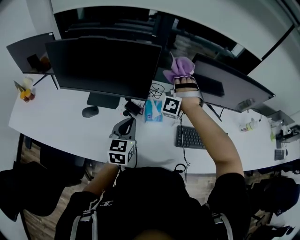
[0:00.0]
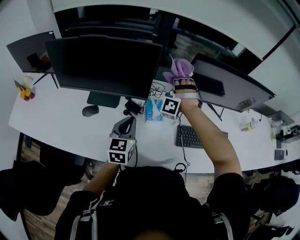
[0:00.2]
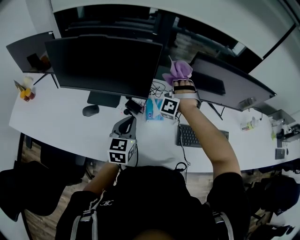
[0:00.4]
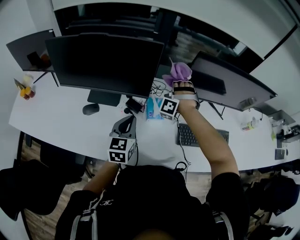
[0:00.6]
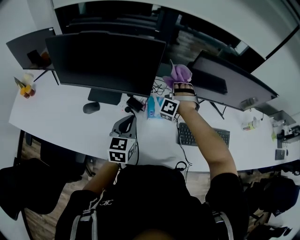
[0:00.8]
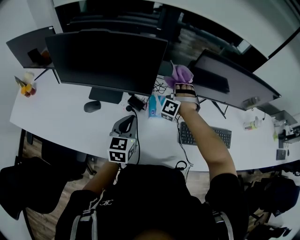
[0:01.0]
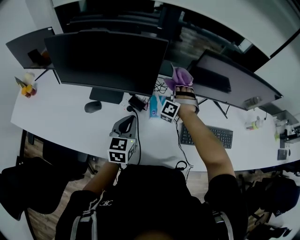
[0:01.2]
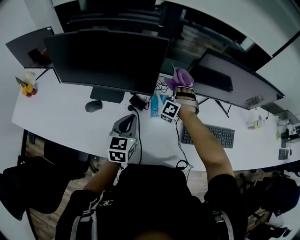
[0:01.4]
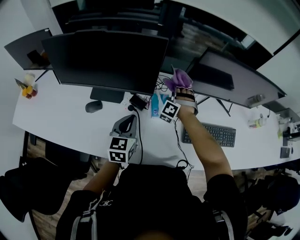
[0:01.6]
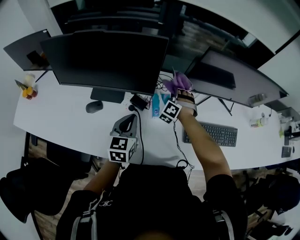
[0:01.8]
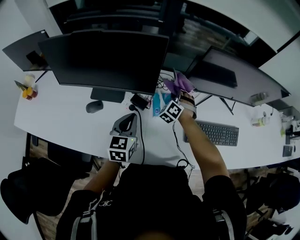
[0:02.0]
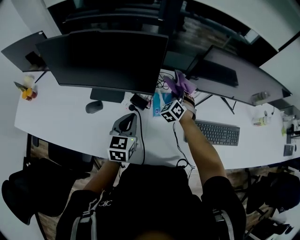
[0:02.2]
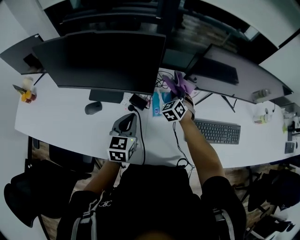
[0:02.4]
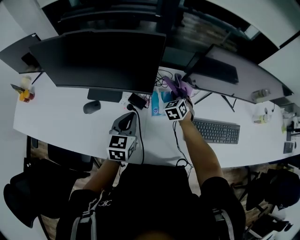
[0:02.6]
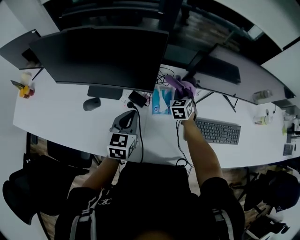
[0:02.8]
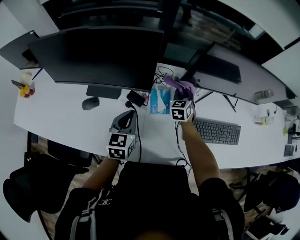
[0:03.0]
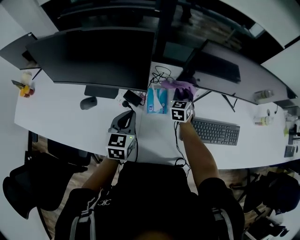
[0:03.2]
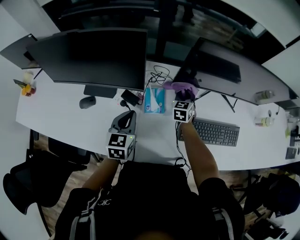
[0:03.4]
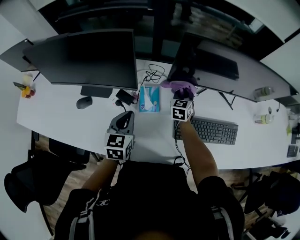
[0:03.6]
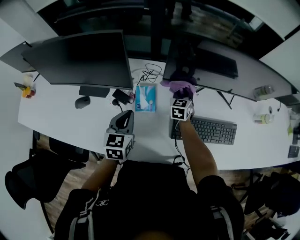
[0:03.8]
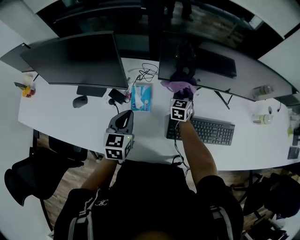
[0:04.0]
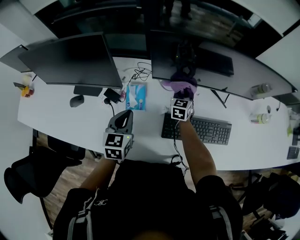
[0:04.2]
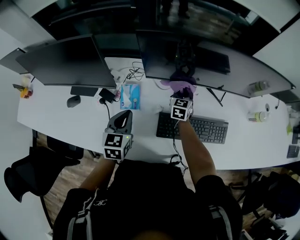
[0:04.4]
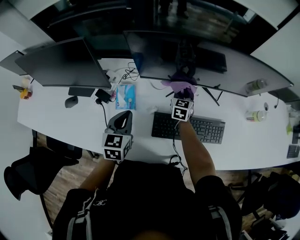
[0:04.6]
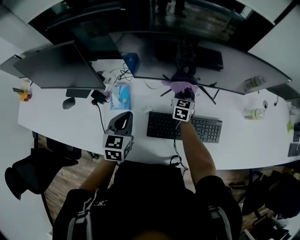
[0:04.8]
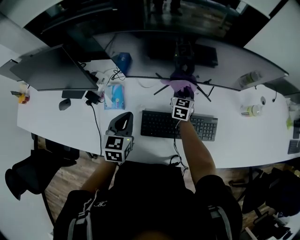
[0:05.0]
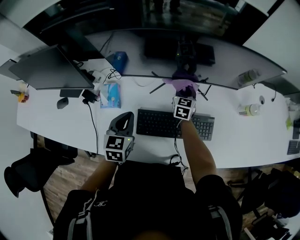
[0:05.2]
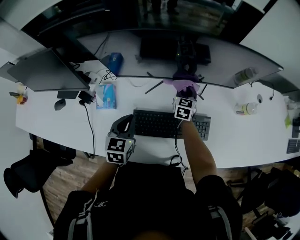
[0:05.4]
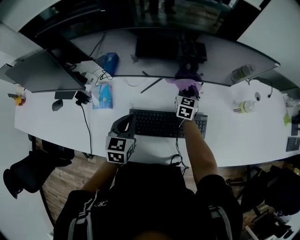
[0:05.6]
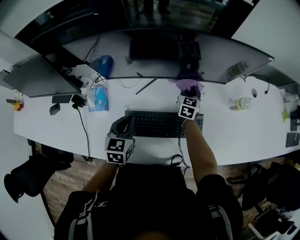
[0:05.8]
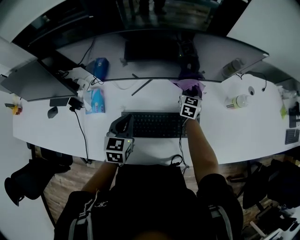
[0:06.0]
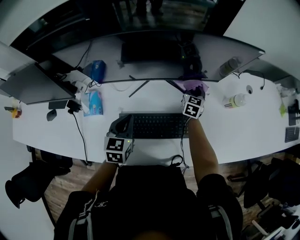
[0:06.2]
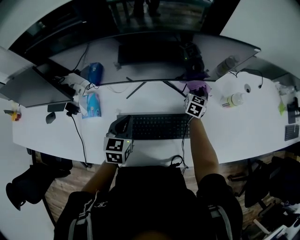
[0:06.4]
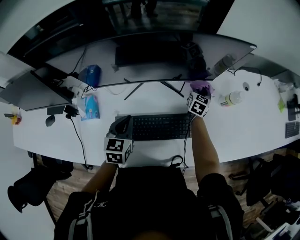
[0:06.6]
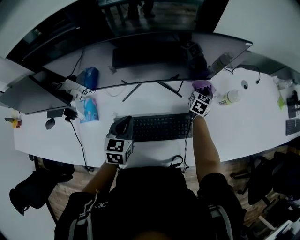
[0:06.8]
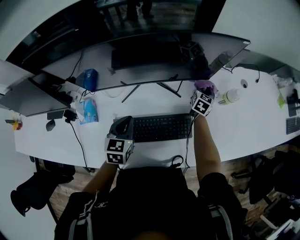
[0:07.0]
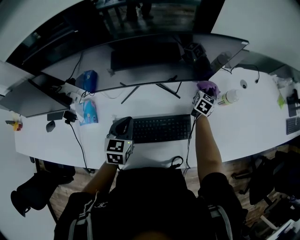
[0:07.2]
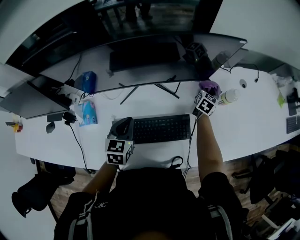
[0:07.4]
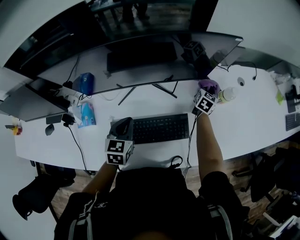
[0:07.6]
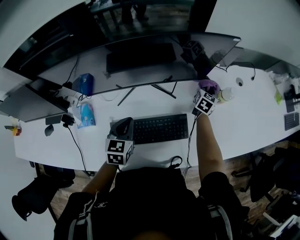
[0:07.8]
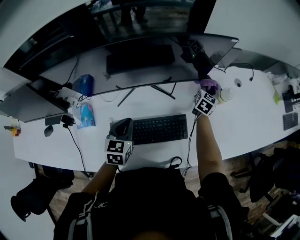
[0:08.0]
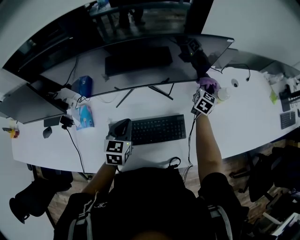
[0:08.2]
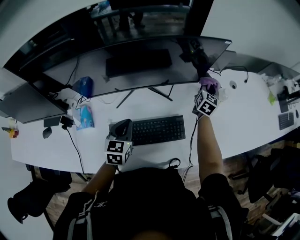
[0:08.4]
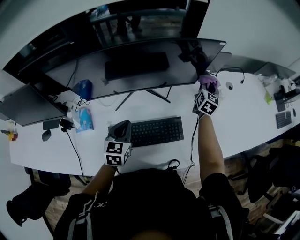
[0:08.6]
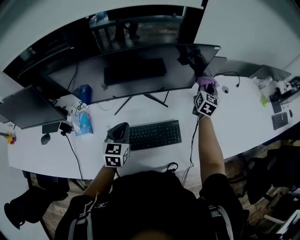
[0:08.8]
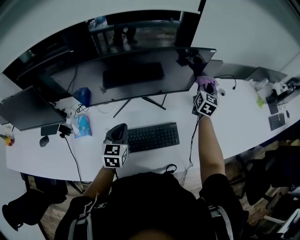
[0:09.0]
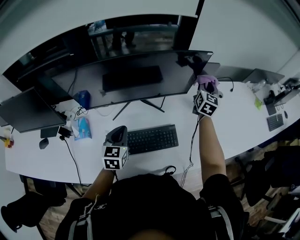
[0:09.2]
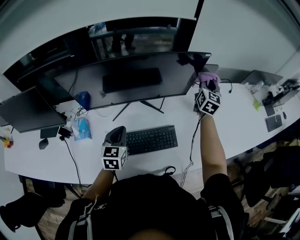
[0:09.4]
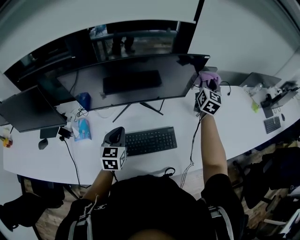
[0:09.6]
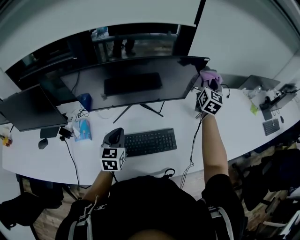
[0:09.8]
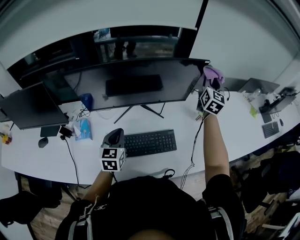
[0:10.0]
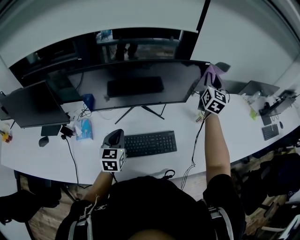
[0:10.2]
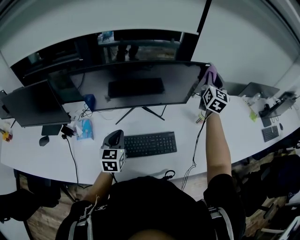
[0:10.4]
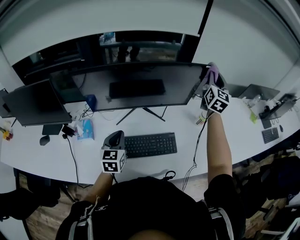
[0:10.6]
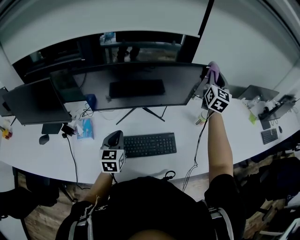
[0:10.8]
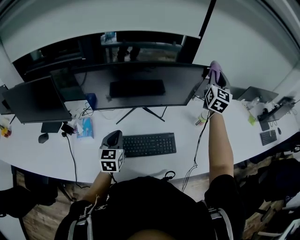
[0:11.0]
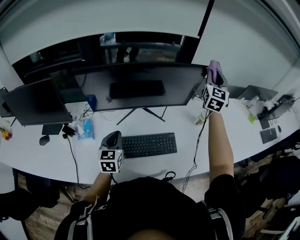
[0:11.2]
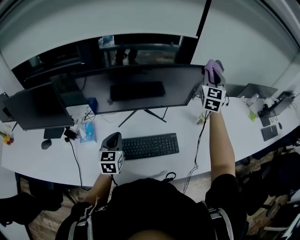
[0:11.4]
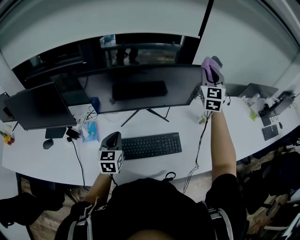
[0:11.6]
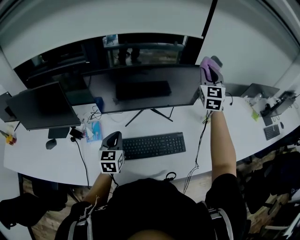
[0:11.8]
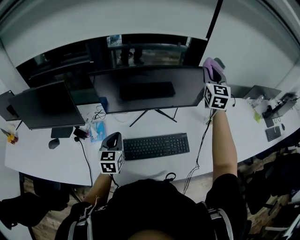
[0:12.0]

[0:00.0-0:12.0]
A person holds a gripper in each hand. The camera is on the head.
0:00.0 to 0:01.6: The right gripper heads downward, covering roughly 15 cm, and swivels about 20 degrees.
0:01.6 to 0:03.0: The left gripper moves roughly 5 cm. Meanwhile the right gripper shifts approximately 5 cm downward, and rolls clockwise, seen from behind, by about 70 degrees.
0:03.0 to 0:04.4: Both grippers travel together to the right, roughly 20 cm.
0:04.4 to 0:06.0: The grippers both shift to the right by approximately 25 cm.
0:06.0 to 0:07.6: The right gripper goes some 20 cm to the right, and rotates approximately 30 degrees, while the left gripper is displaced to the right by some 5 cm.
0:07.6 to 0:09.0: The right gripper travels upward by approximately 20 cm, and changes its angle by some 20 degrees.
0:09.0 to 0:10.4: The left gripper ends up approximately 5 cm from where it was, while the right gripper heads upward, covering some 20 cm.
0:10.4 to 0:12.0: Both grippers travel together to the left, roughly 10 cm.

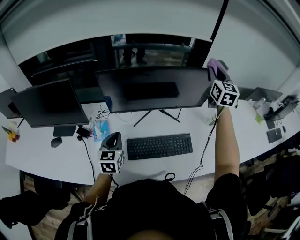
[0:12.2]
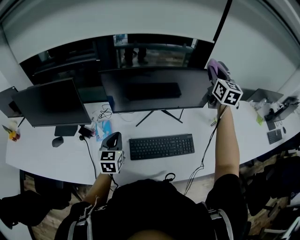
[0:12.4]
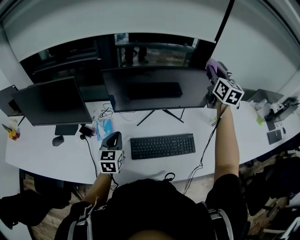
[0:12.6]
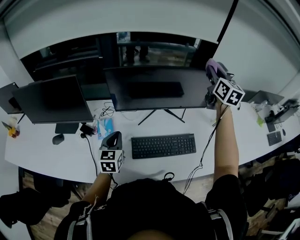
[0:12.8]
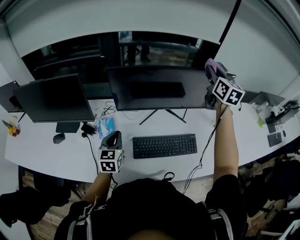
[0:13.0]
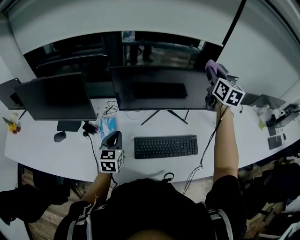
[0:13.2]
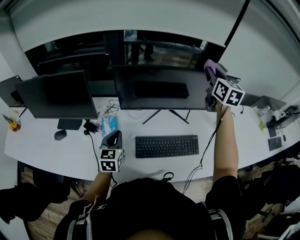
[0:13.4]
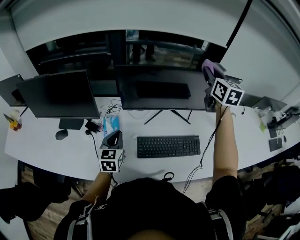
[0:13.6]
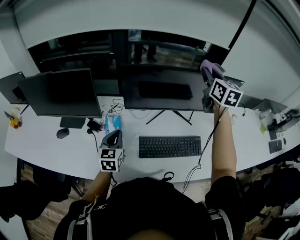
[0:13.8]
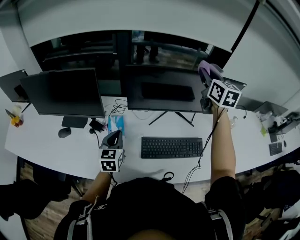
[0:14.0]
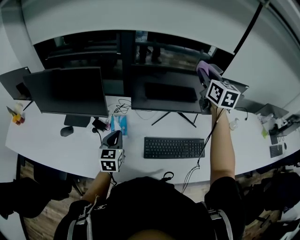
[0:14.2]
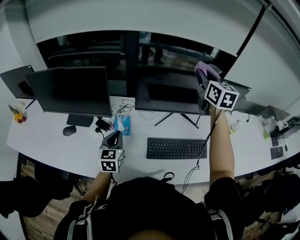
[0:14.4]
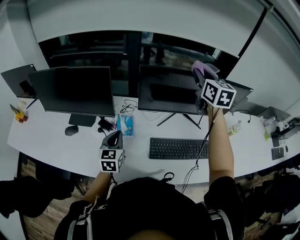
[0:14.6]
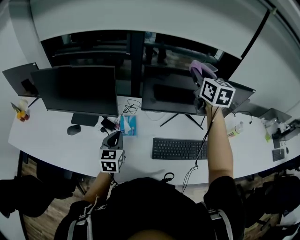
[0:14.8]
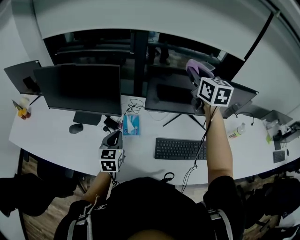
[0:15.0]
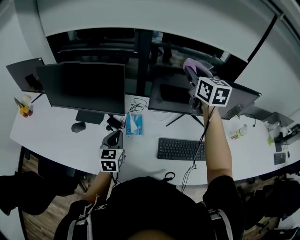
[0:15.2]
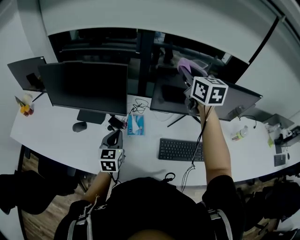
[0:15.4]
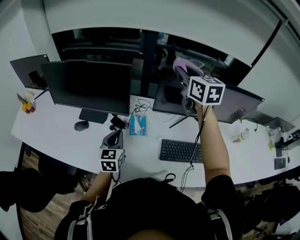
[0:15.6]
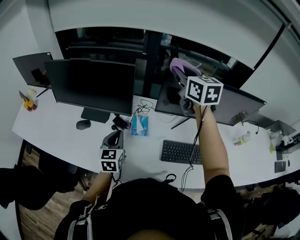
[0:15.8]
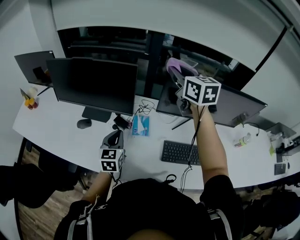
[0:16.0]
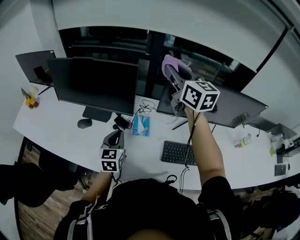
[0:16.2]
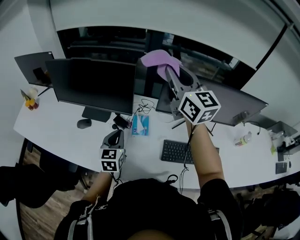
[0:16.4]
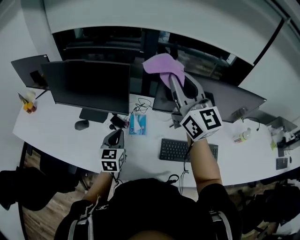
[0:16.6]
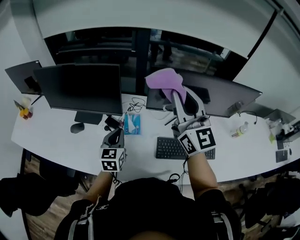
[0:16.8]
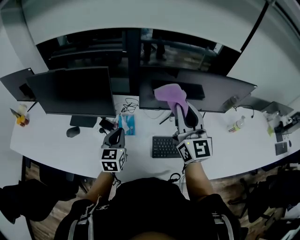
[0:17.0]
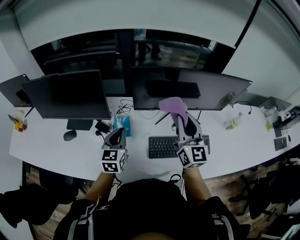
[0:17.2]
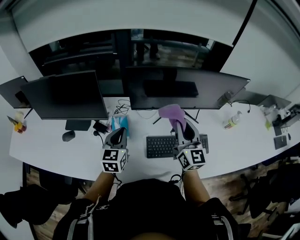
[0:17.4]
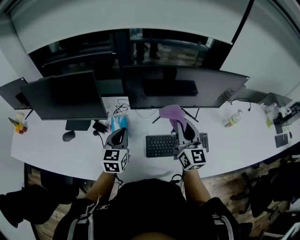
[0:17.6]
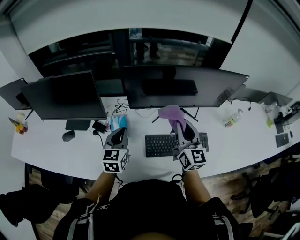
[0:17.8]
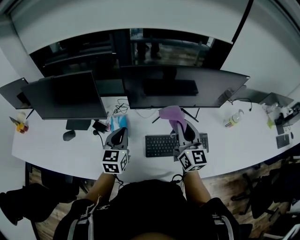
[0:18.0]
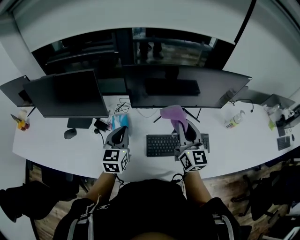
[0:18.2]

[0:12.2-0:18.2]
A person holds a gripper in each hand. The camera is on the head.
0:12.2 to 0:13.8: The right gripper is displaced to the left by approximately 15 cm. Meanwhile the left gripper moves to the left, some 10 cm.
0:13.8 to 0:15.2: The right gripper moves to the left, about 25 cm. The left gripper heads to the left, covering roughly 15 cm.
0:15.2 to 0:16.6: The right gripper goes roughly 15 cm to the left and backward, and turns by roughly 30 degrees.
0:16.6 to 0:18.2: The right gripper travels to the right and downward by approximately 30 cm, and changes its angle by roughly 30 degrees, while the left gripper is displaced to the right by roughly 15 cm.

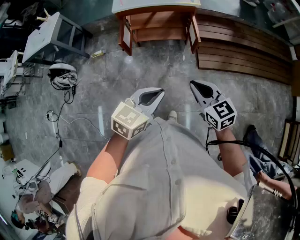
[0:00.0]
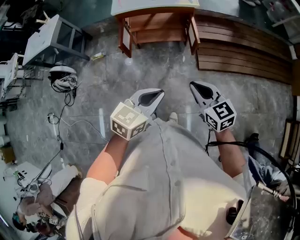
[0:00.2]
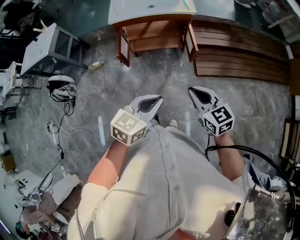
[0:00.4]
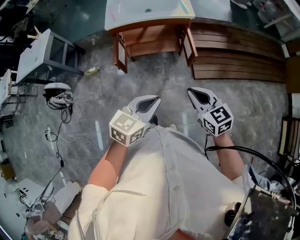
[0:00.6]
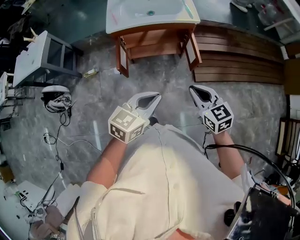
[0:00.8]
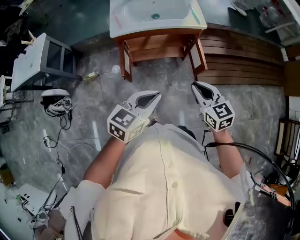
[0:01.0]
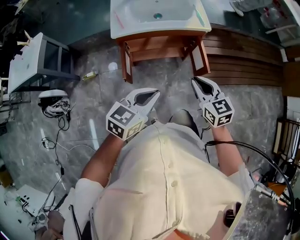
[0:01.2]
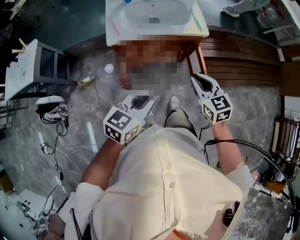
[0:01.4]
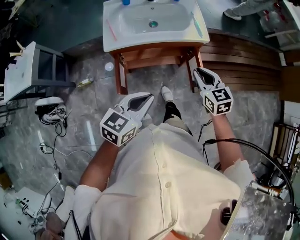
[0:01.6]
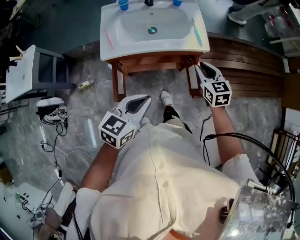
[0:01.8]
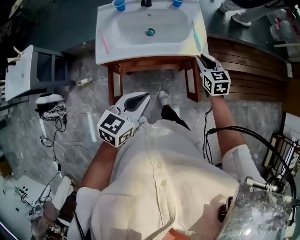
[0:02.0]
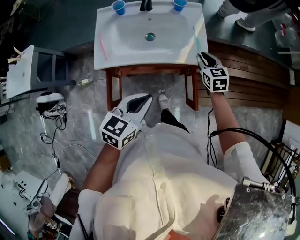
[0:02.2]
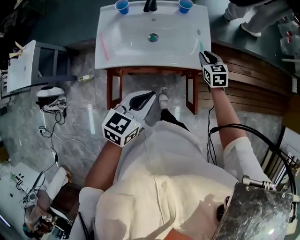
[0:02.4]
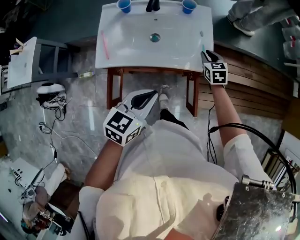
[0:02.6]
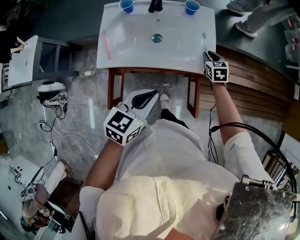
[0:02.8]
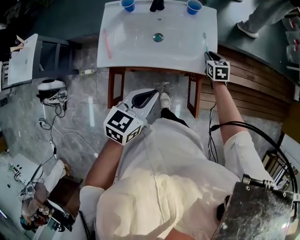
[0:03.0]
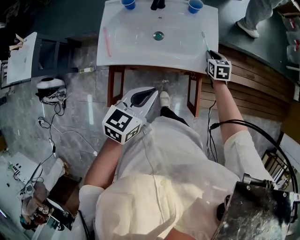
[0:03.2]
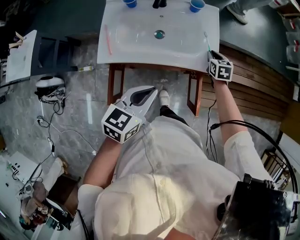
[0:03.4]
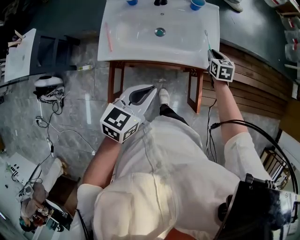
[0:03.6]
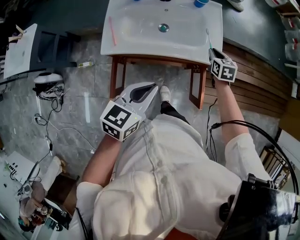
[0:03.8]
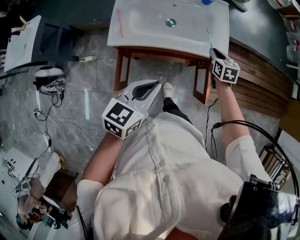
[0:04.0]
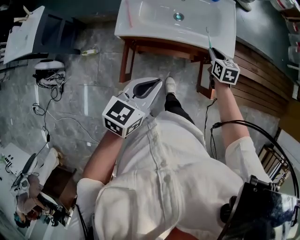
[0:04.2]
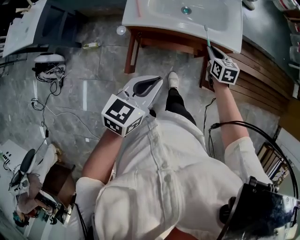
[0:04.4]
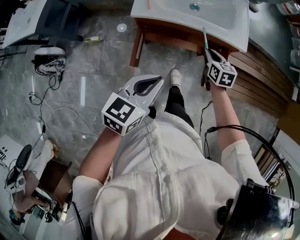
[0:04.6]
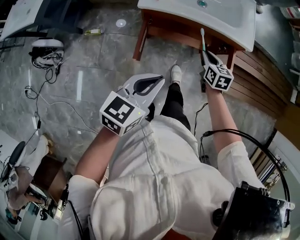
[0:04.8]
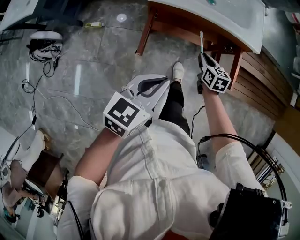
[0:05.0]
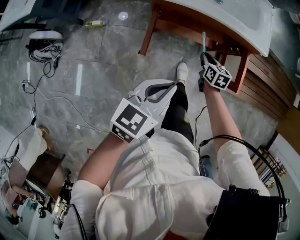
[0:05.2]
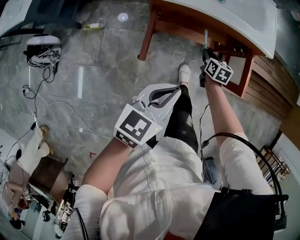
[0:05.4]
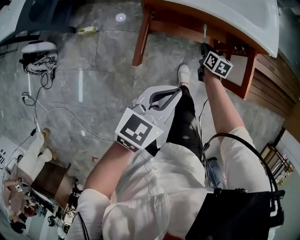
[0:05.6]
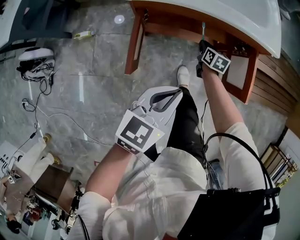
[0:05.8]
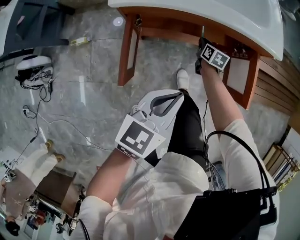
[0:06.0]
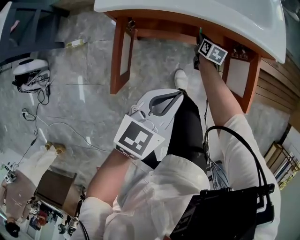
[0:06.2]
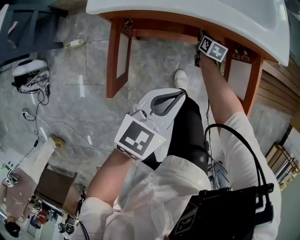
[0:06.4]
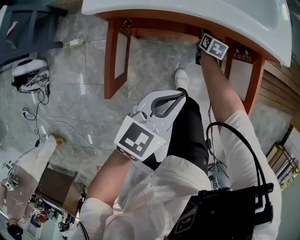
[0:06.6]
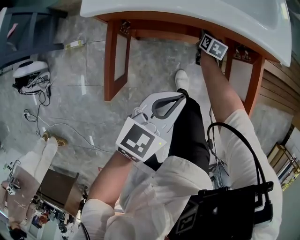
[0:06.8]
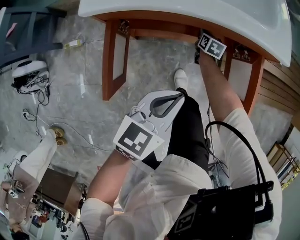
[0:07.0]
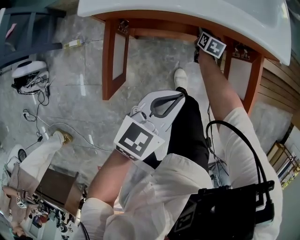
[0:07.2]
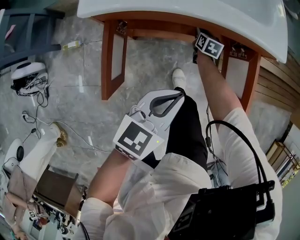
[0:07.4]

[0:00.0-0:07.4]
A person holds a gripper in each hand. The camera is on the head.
0:00.0 to 0:01.4: Both grippers travel together forward and to the left, approximately 30 cm.
0:01.4 to 0:03.0: The right gripper is displaced forward and downward by roughly 50 cm, while the left gripper travels forward by some 25 cm.
0:03.0 to 0:04.4: The two grippers go about 20 cm backward and to the left.
0:04.4 to 0:06.0: The left gripper moves downward, some 20 cm; the right gripper goes about 35 cm downward, and turns by about 20 degrees.
0:06.0 to 0:07.4: The right gripper shifts some 5 cm forward, while the left gripper ends up approximately 5 cm from where it was.
